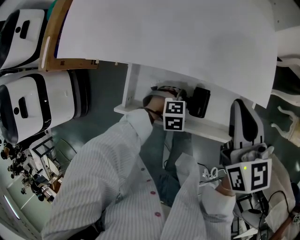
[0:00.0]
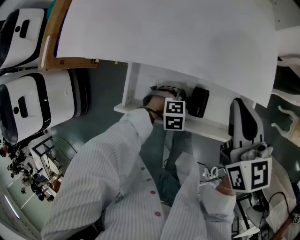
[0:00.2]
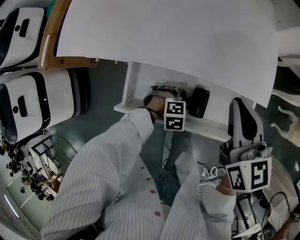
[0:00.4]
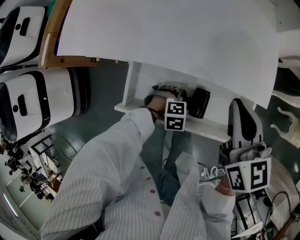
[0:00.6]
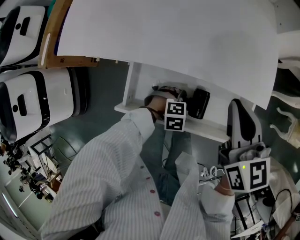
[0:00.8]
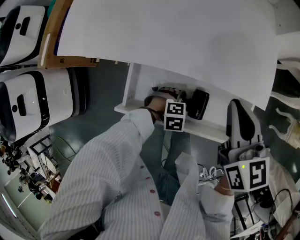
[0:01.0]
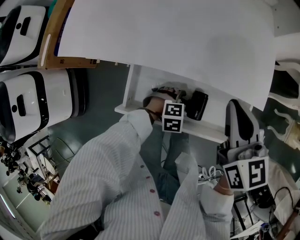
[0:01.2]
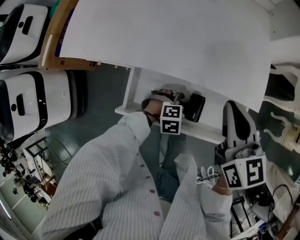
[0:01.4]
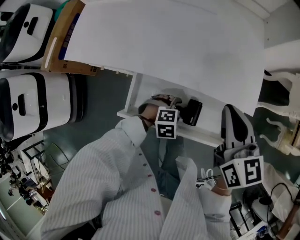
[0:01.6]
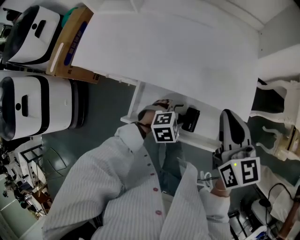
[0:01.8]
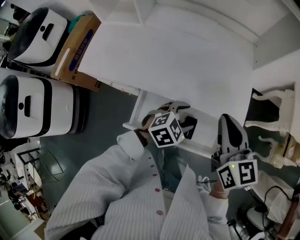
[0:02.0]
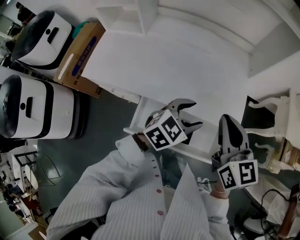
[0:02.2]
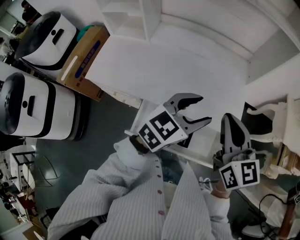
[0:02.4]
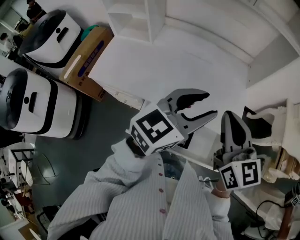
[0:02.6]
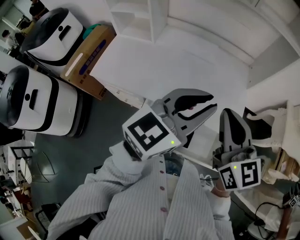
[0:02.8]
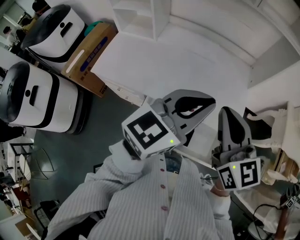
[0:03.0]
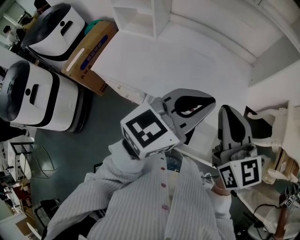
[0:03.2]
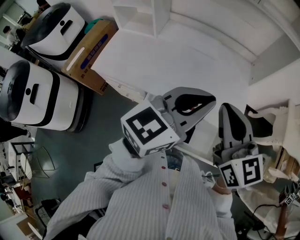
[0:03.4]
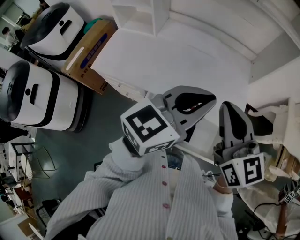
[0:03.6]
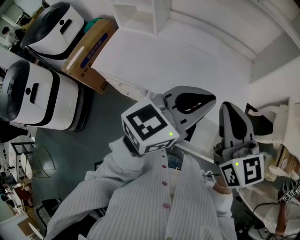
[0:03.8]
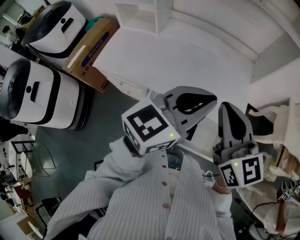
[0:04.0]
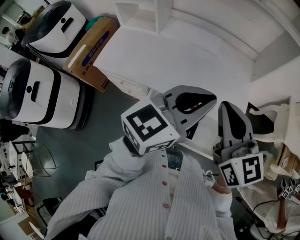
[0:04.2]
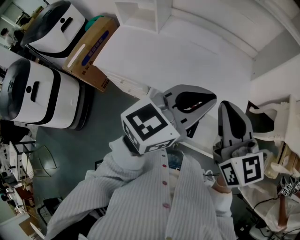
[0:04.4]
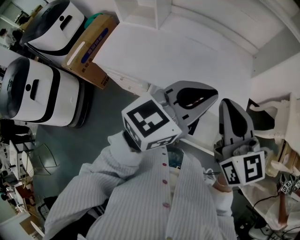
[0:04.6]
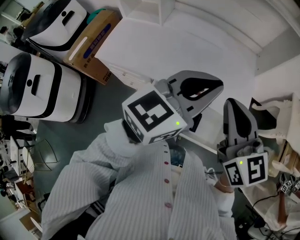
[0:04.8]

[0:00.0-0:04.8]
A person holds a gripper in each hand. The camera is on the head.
0:00.0 to 0:01.6: The left gripper travels upward by roughly 5 cm.
0:01.6 to 0:03.2: The left gripper heads upward, covering approximately 50 cm, tips its fingers upward by approximately 70 degrees, and closes. The right gripper travels upward by approximately 20 cm, and turns by approximately 20 degrees.
0:03.2 to 0:04.8: There are only small adjustments of the grippers.

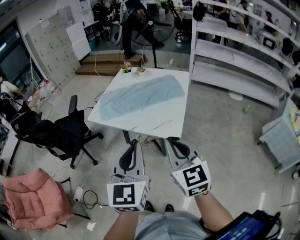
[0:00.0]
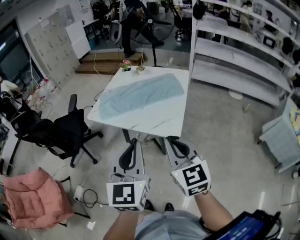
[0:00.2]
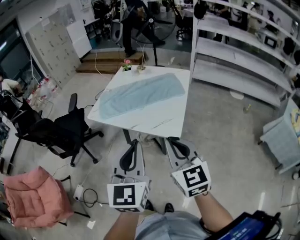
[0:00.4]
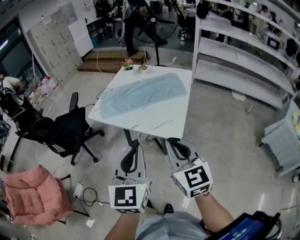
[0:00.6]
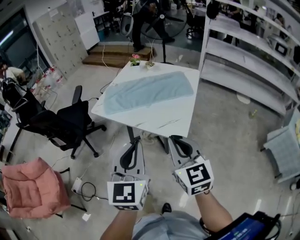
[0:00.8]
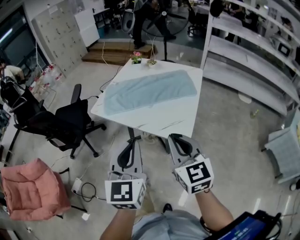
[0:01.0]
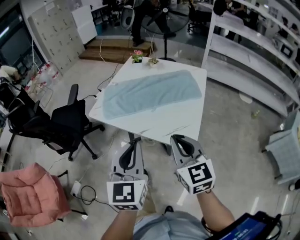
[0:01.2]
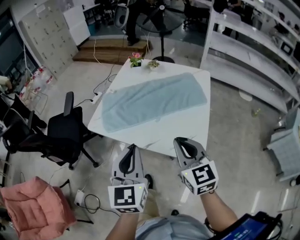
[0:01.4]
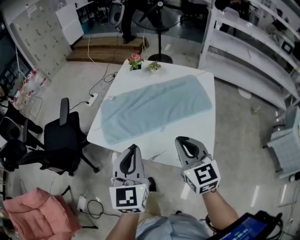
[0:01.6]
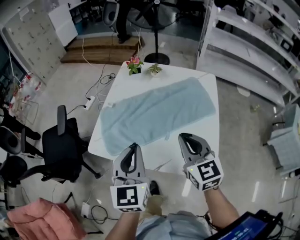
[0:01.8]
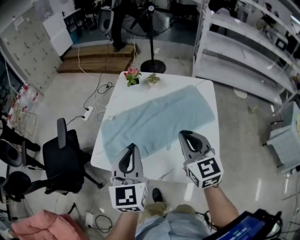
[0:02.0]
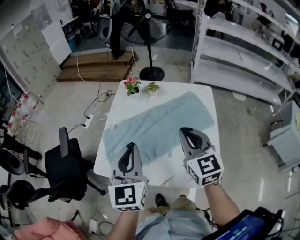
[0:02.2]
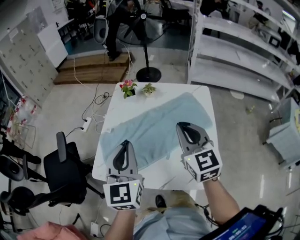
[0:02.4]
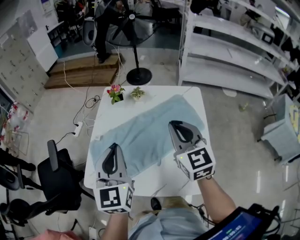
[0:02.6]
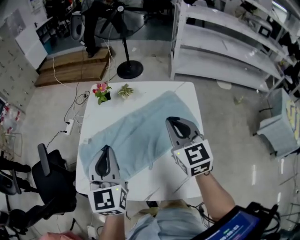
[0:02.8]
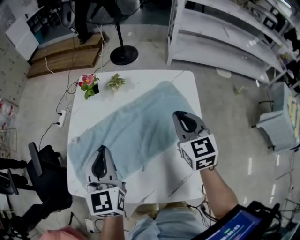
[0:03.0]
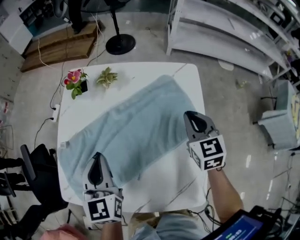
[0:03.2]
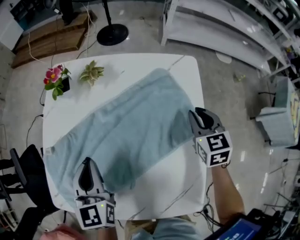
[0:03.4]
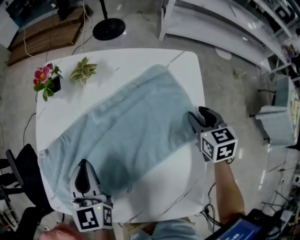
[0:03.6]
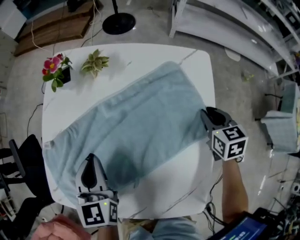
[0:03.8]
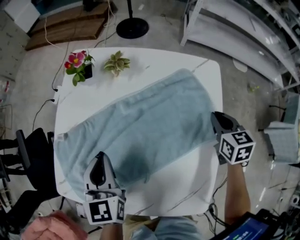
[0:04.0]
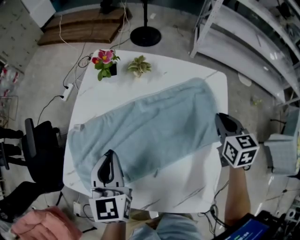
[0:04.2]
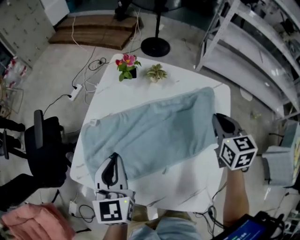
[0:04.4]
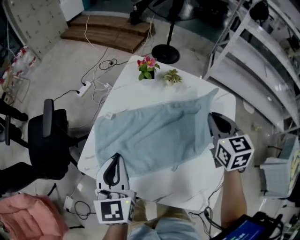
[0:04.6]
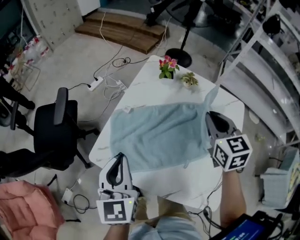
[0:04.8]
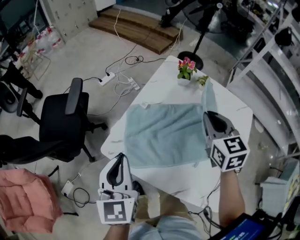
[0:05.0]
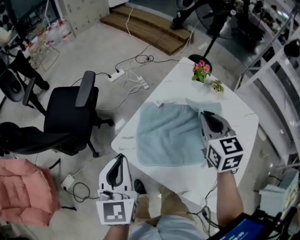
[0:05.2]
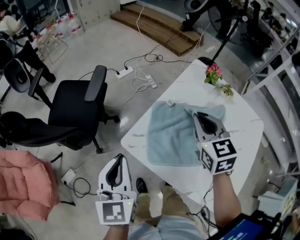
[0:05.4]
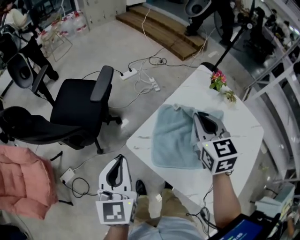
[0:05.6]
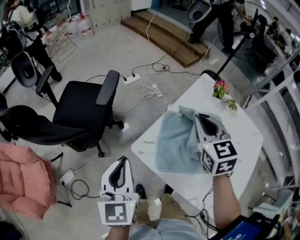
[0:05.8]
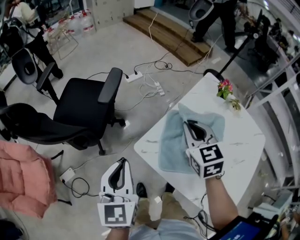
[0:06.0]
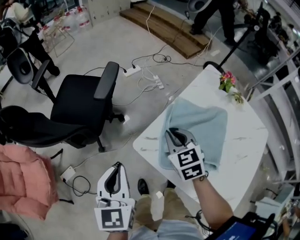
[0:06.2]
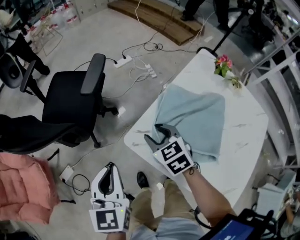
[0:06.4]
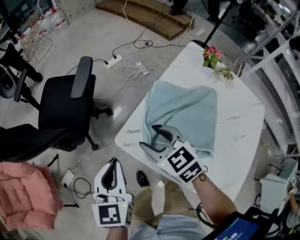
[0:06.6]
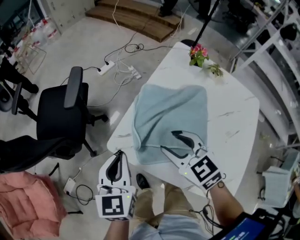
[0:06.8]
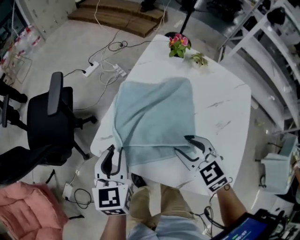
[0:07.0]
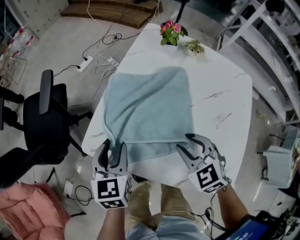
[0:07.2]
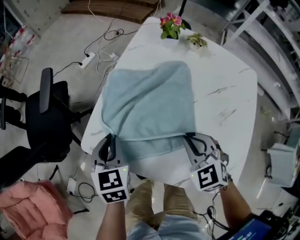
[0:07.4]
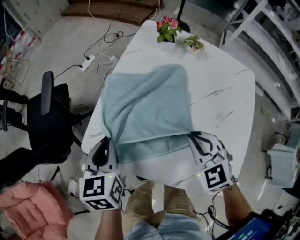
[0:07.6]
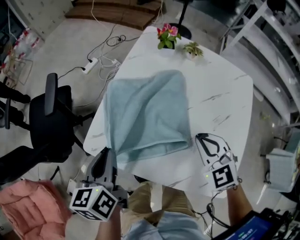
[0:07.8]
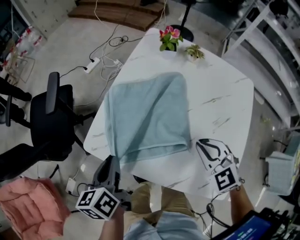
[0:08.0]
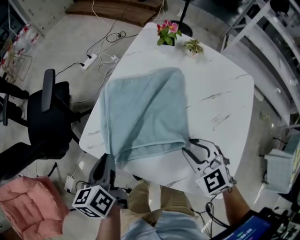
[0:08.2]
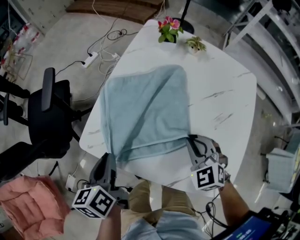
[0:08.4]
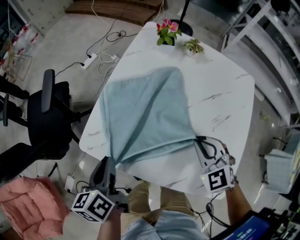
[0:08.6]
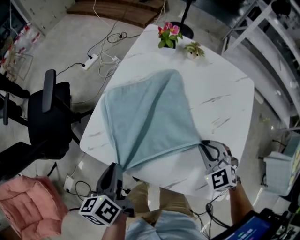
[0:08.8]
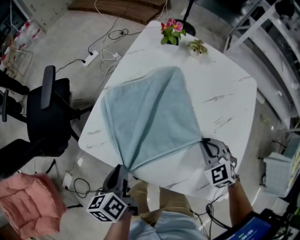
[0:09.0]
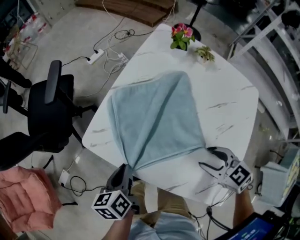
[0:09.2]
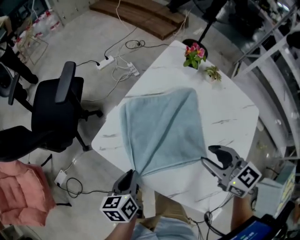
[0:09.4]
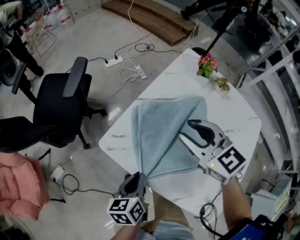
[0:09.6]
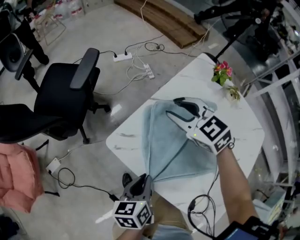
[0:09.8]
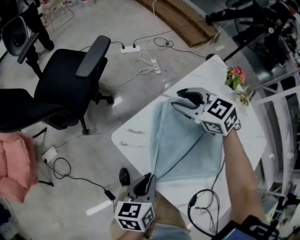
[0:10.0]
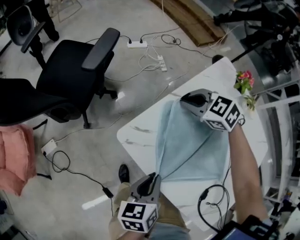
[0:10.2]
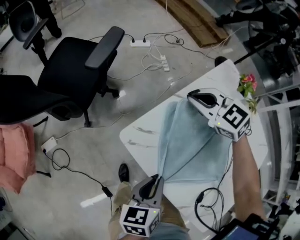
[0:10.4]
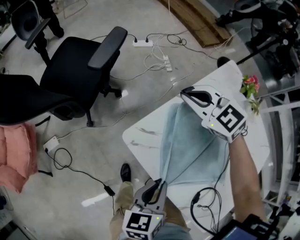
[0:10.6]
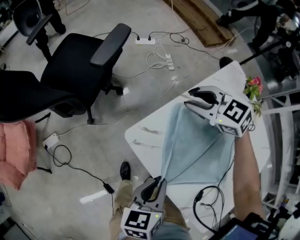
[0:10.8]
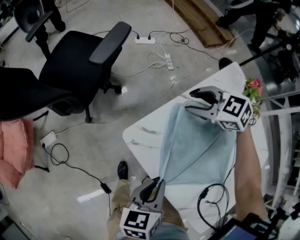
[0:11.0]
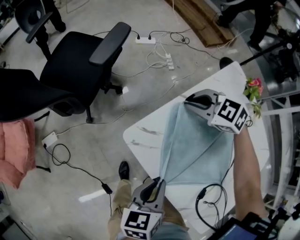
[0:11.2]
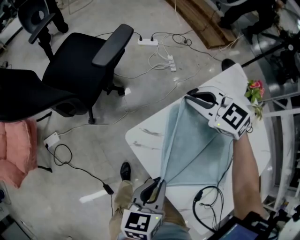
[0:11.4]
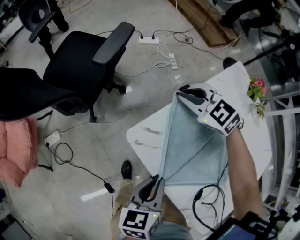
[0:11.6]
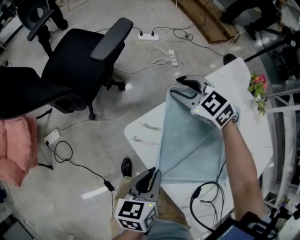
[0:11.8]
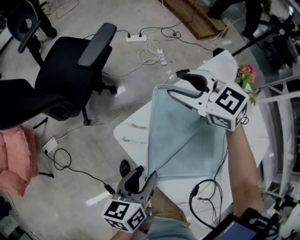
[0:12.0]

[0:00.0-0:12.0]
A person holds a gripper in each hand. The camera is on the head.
0:00.0 to 0:01.6: Both grippers move forward, roughly 25 cm.
0:01.6 to 0:03.0: The right gripper travels forward and to the right by some 30 cm. The left gripper heads forward, covering some 25 cm.
0:03.0 to 0:04.4: The left gripper is displaced to the left by roughly 10 cm. Meanwhile the right gripper reaches some 15 cm downward, then returns, and opens, then closes once more.
0:04.4 to 0:06.0: The right gripper changes place by some 50 cm, and turns by approximately 40 degrees; the left gripper shifts by about 30 cm, and changes its angle by roughly 30 degrees.
0:06.0 to 0:07.6: The left gripper travels to the right and downward by some 20 cm, swivels approximately 20 degrees, and opens, then closes once more; the right gripper travels to the right, backward and downward by roughly 25 cm, and opens, then closes once more.
0:07.6 to 0:09.0: The left gripper shifts roughly 10 cm backward and downward, and turns by roughly 30 degrees. Meanwhile the right gripper is displaced to the right and downward by approximately 10 cm, and opens and closes again.
0:09.0 to 0:10.4: The right gripper moves up and down over about 15 cm, changing direction 2 times, turns by roughly 50 degrees, and opens and closes again.
0:10.4 to 0:12.0: The right gripper goes up and down, some 10 cm each way, reversing 3 times, and opens up. Meanwhile the left gripper opens up.

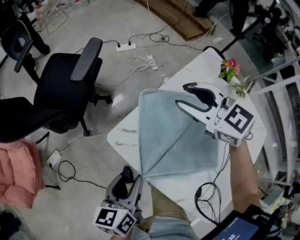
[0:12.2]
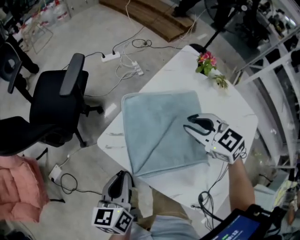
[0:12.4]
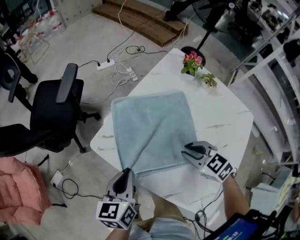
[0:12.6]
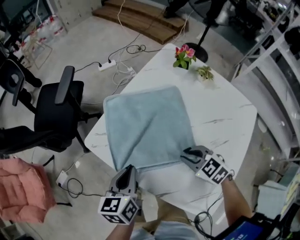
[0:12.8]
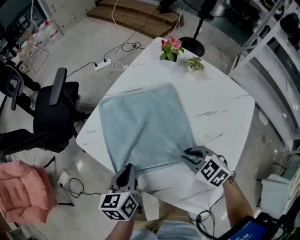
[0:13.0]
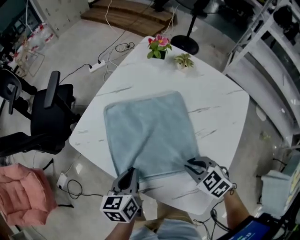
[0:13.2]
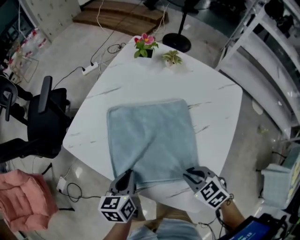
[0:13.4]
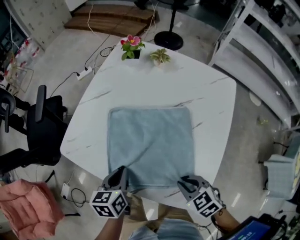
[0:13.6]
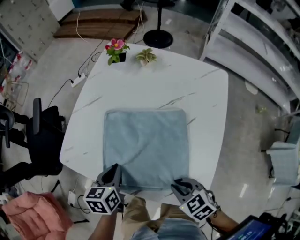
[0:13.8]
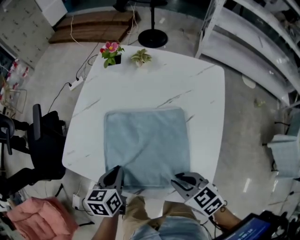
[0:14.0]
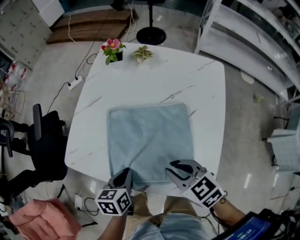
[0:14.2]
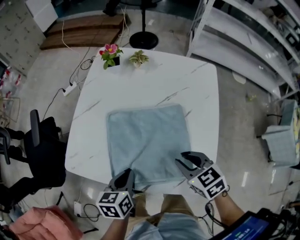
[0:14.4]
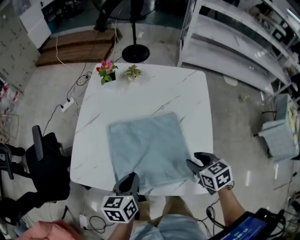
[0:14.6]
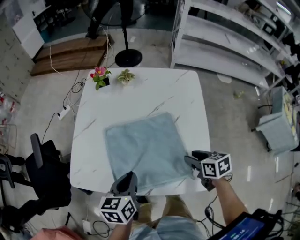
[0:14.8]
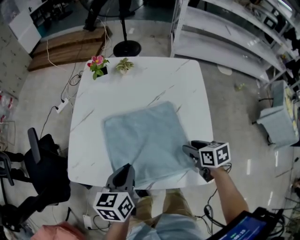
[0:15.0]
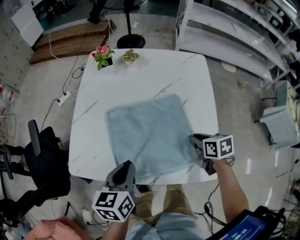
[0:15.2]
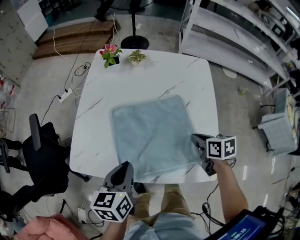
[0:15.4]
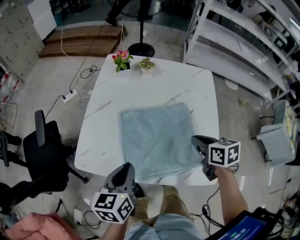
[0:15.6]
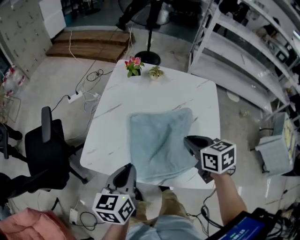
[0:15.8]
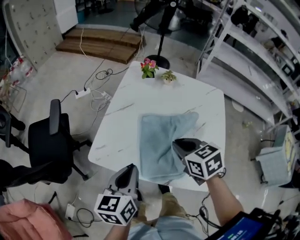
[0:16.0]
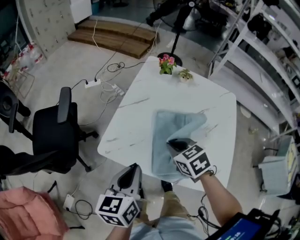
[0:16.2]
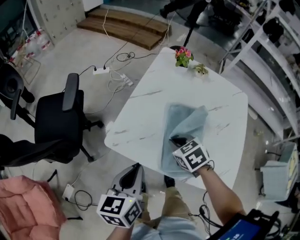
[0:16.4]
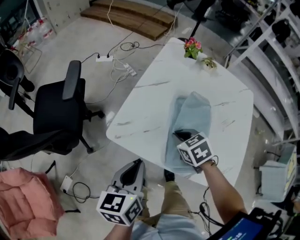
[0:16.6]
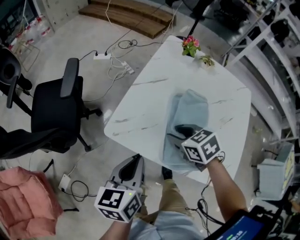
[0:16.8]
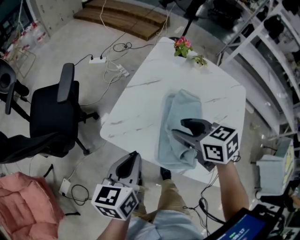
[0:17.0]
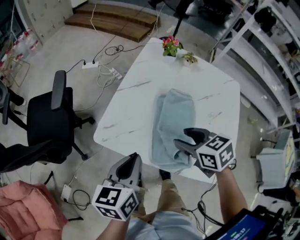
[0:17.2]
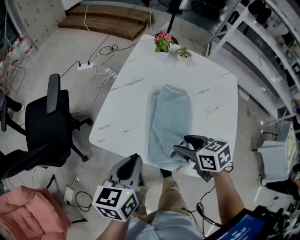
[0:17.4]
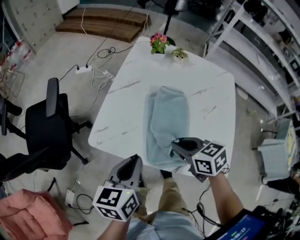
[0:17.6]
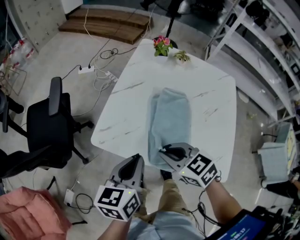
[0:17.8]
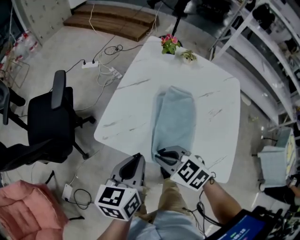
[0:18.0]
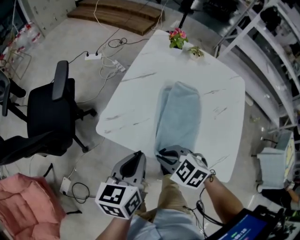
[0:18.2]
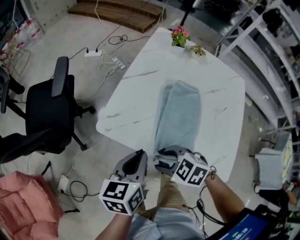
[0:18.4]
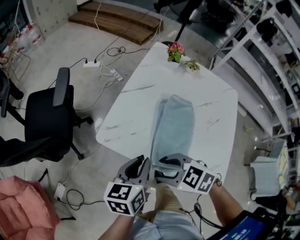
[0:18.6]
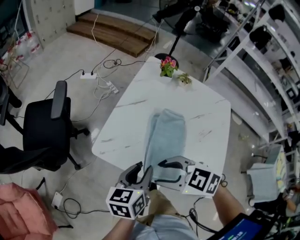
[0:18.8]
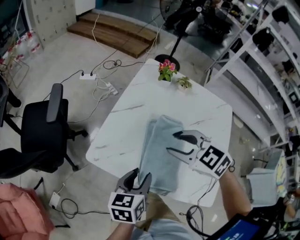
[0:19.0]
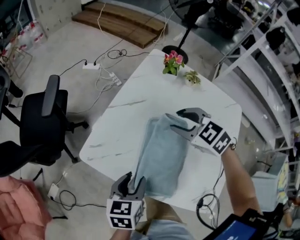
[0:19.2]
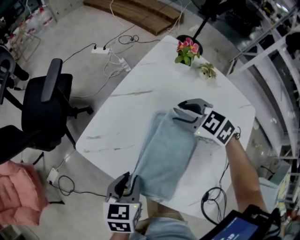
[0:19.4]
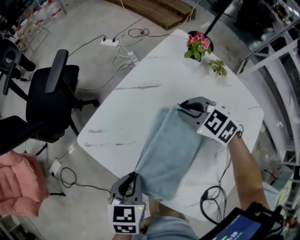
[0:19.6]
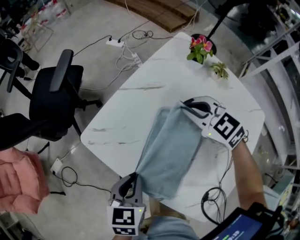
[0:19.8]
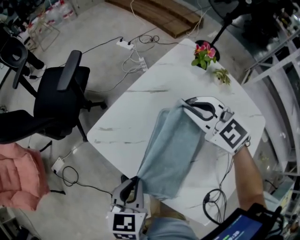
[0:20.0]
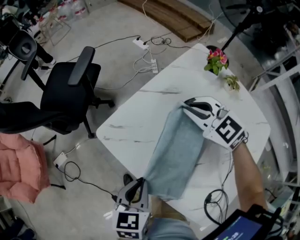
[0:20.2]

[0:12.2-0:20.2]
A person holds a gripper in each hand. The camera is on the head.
0:12.2 to 0:13.8: The right gripper goes about 50 cm backward and to the right, rotates roughly 50 degrees, and closes up. Meanwhile the left gripper travels to the right by about 20 cm, turns by some 40 degrees, and closes up.
0:13.8 to 0:15.4: The left gripper heads upward, covering about 10 cm; the right gripper reaches some 5 cm upward, then returns, rotates around the line of its fingers by roughly 40 degrees, clockwise from behind, and opens, then closes again.
0:15.4 to 0:17.0: The right gripper moves to the left, approximately 30 cm, turns by about 50 degrees, and opens its fingers, while the left gripper goes roughly 15 cm to the left.
0:17.0 to 0:18.6: The right gripper moves backward and to the left, approximately 15 cm, turns by roughly 30 degrees, and closes, then reopens. The left gripper moves roughly 5 cm.
0:18.6 to 0:20.2: The right gripper goes roughly 30 cm forward and to the right, changes its angle by some 30 degrees, and closes up. Meanwhile the left gripper swivels roughly 30 degrees, and opens, then closes once more.
